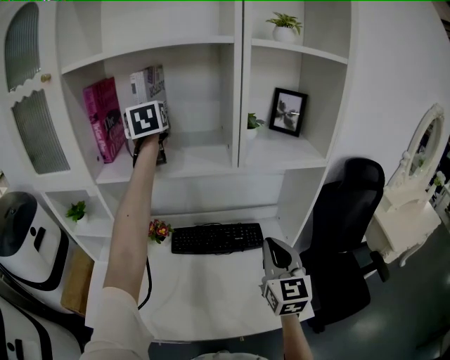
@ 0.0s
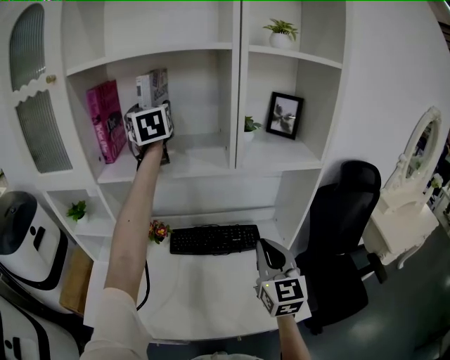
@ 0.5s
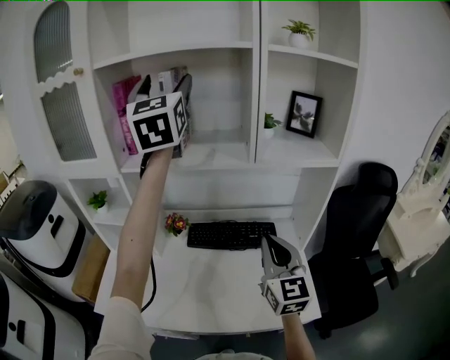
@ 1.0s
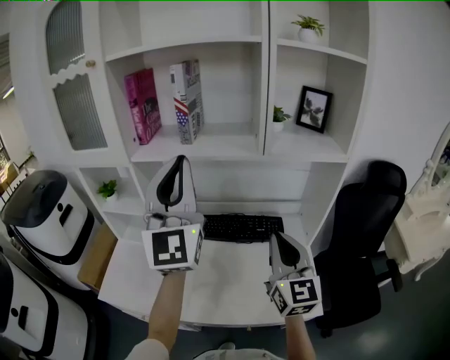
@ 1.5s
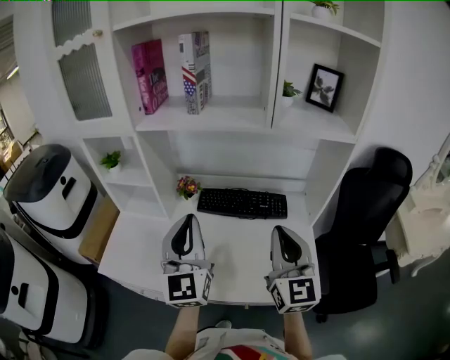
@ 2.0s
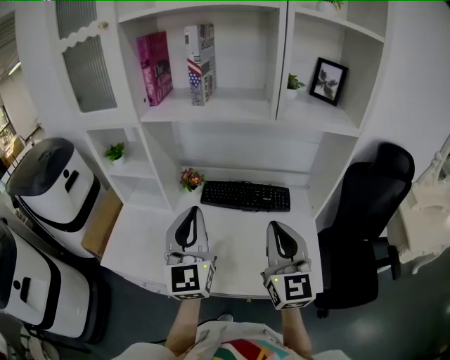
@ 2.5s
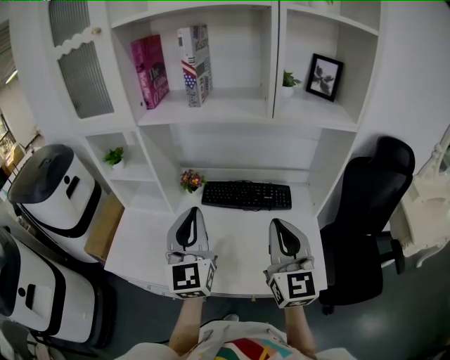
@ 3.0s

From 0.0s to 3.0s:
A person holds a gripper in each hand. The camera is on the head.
From 0.0s to 1.5s: The right gripper ends up approximately 5 cm from where it was, while the left gripper travels backward by about 35 cm, tips its fingers upward by approximately 30 degrees, and closes.
From 1.5s to 3.0s: The left gripper moves downward, roughly 20 cm, and rotates about 20 degrees, while the right gripper ends up roughly 5 cm from where it was.

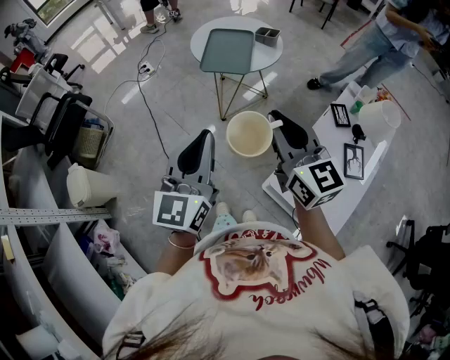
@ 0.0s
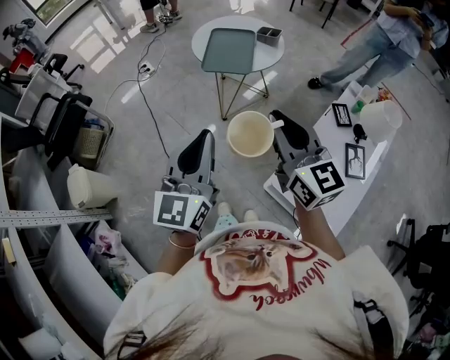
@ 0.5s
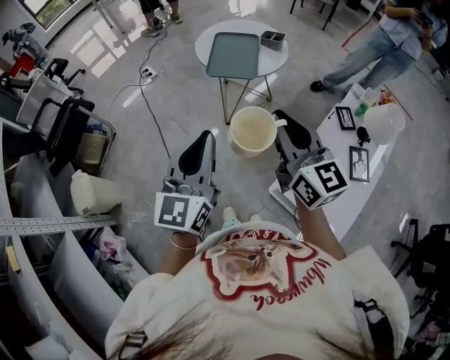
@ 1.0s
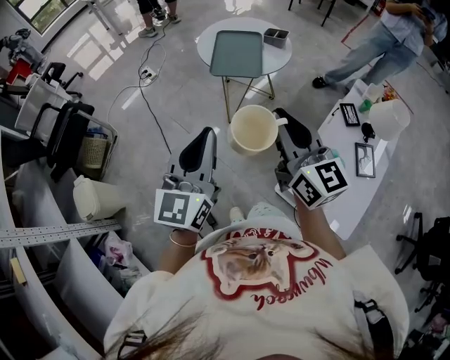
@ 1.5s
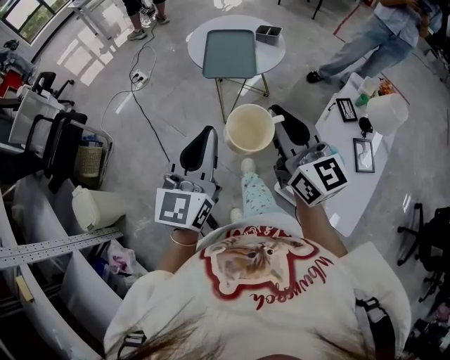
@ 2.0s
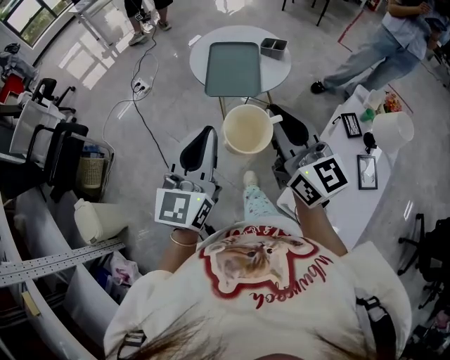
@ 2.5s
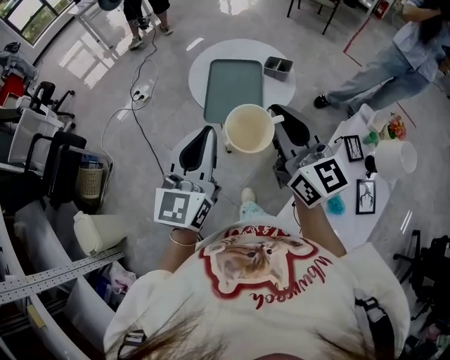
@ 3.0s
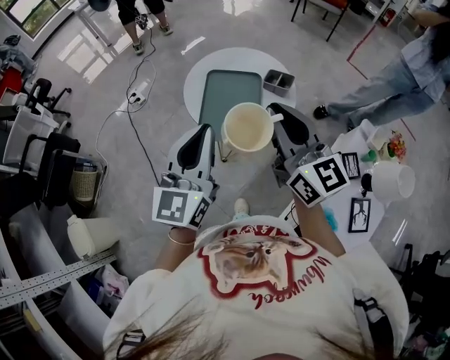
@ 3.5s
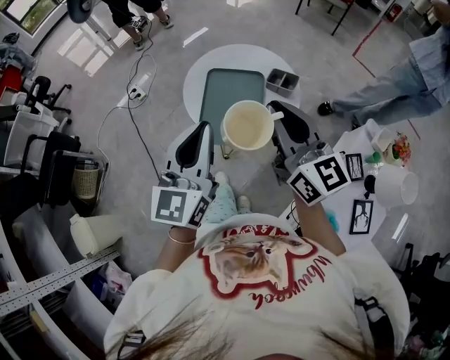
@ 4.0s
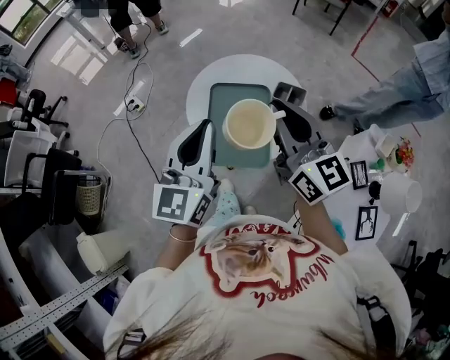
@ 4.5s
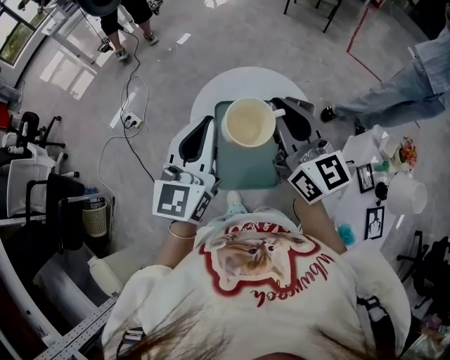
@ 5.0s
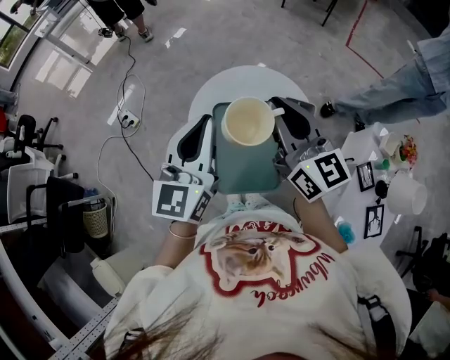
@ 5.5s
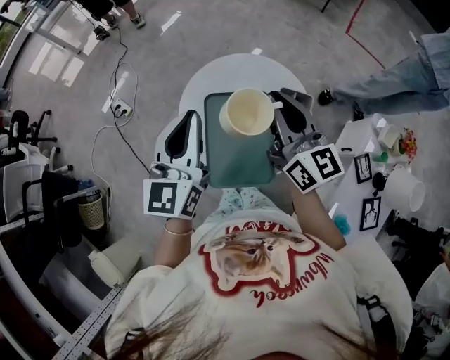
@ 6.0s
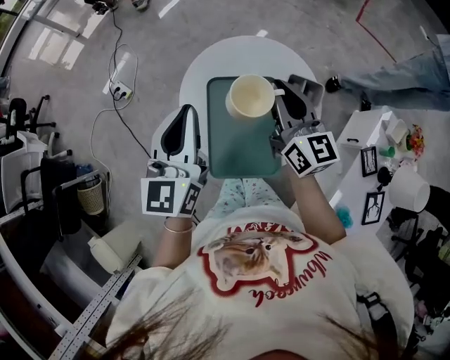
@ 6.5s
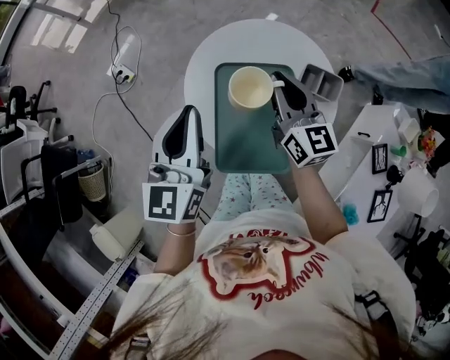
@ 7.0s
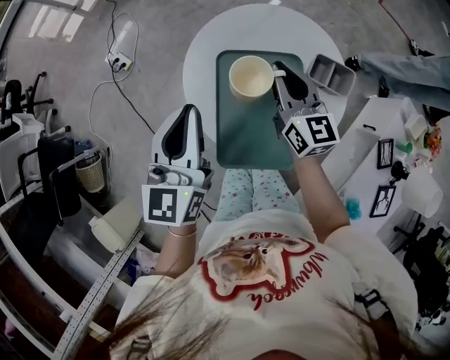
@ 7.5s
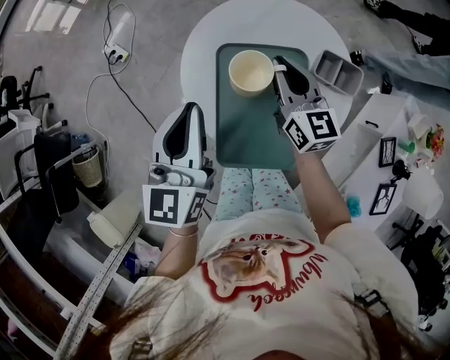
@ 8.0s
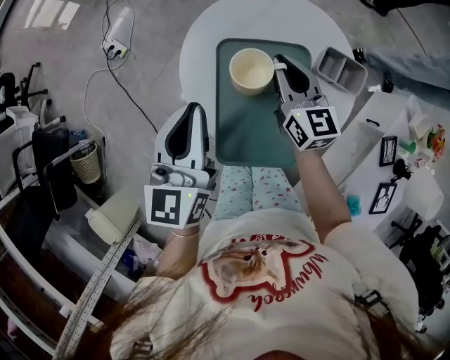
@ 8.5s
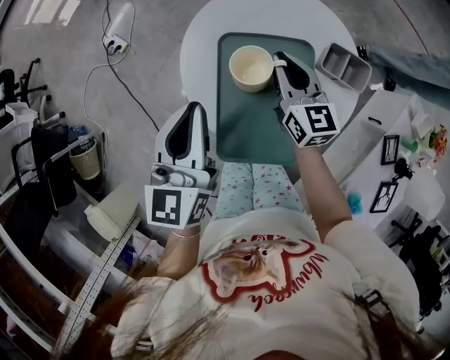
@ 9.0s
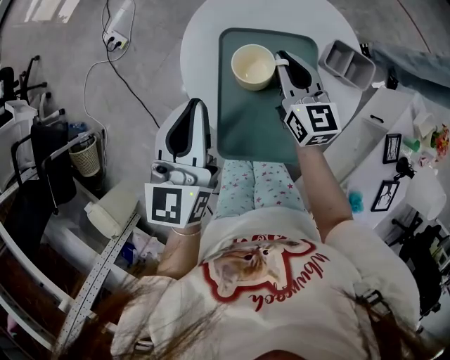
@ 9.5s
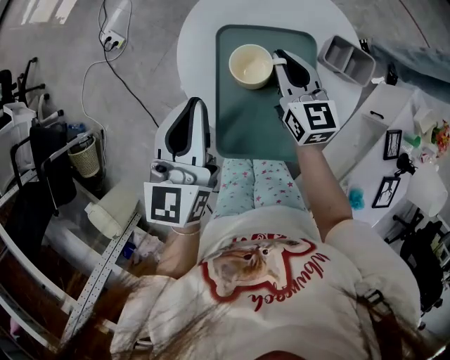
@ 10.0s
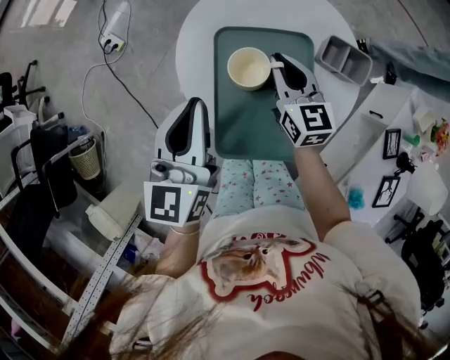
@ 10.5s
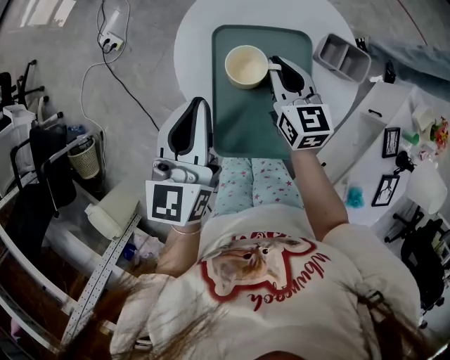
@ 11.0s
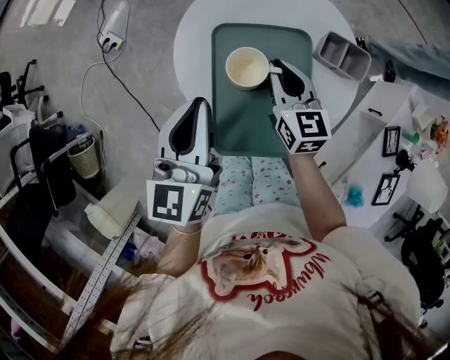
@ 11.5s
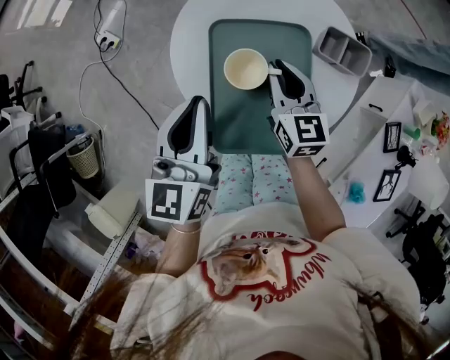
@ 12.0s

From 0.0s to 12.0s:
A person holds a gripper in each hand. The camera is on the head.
From 0.0s to 2.0s: The right gripper travels forward and to the left by approximately 10 cm. The left gripper travels forward by some 10 cm.
From 2.0s to 4.0s: The two grippers go roughly 30 cm forward.
From 4.0s to 6.0s: Both grippers move forward, approximately 20 cm.
From 6.0s to 8.0s: The left gripper heads downward, covering approximately 10 cm, while the right gripper travels downward by about 20 cm.
From 8.0s to 10.0s: The right gripper goes some 5 cm downward.
From 10.0s to 12.0s: The grippers make only small movements.

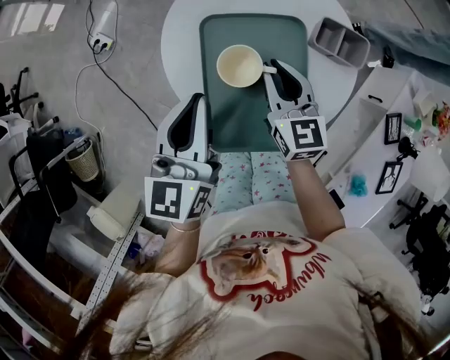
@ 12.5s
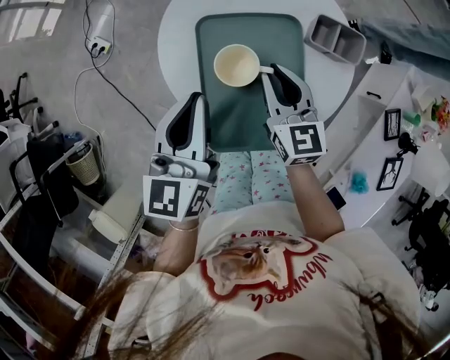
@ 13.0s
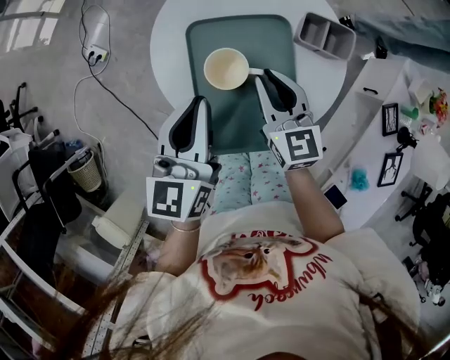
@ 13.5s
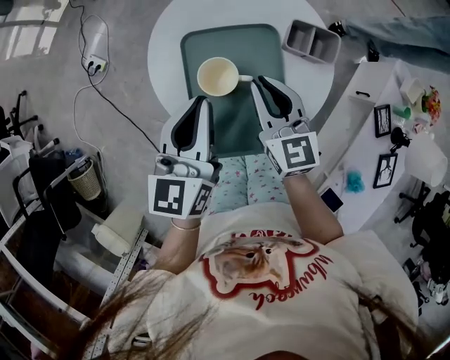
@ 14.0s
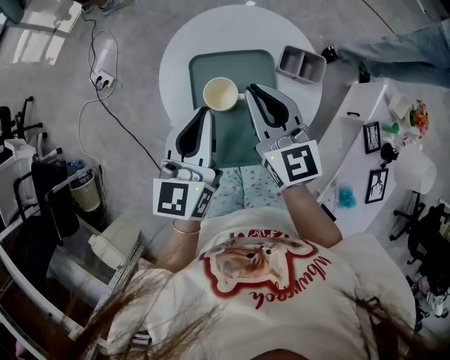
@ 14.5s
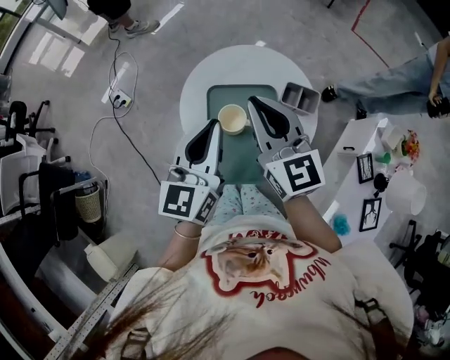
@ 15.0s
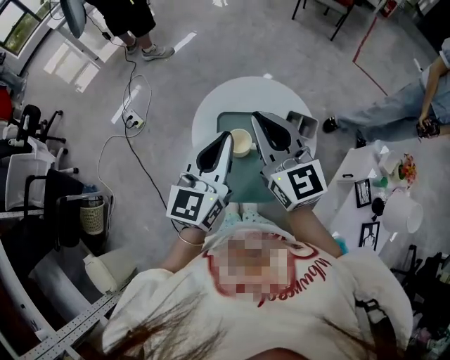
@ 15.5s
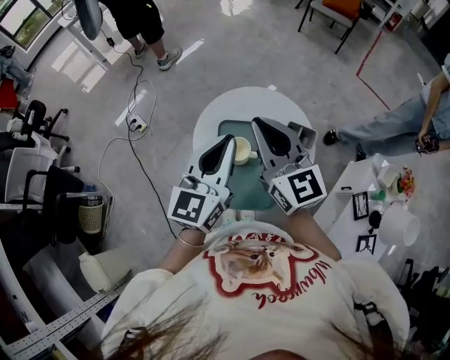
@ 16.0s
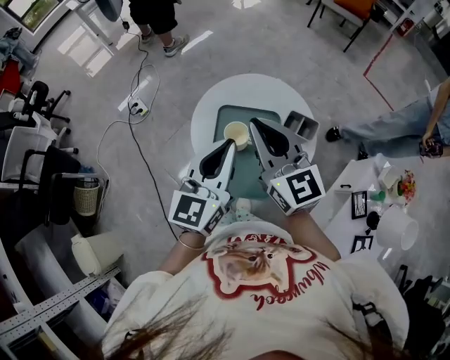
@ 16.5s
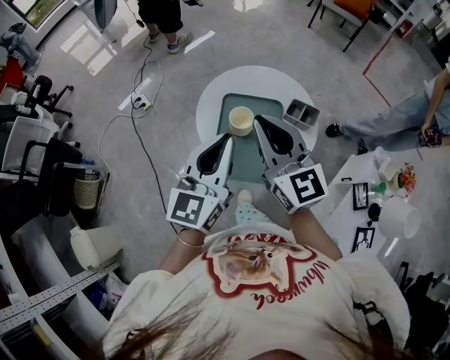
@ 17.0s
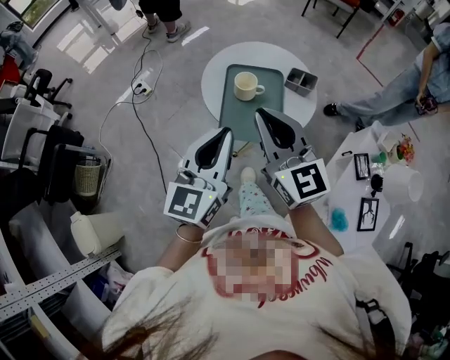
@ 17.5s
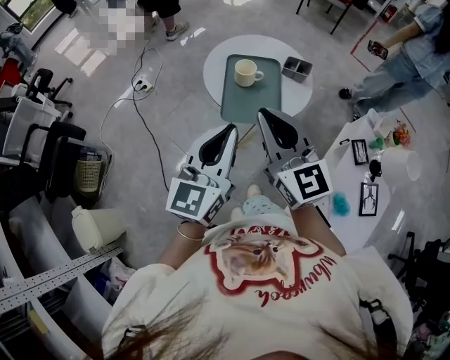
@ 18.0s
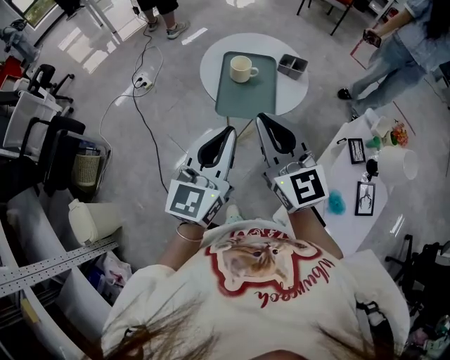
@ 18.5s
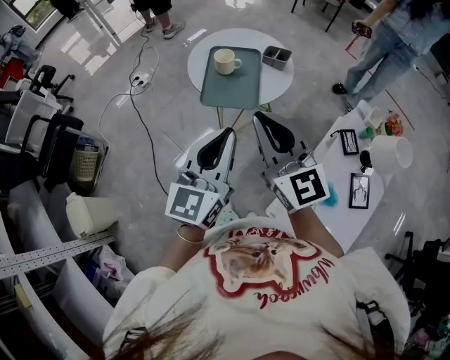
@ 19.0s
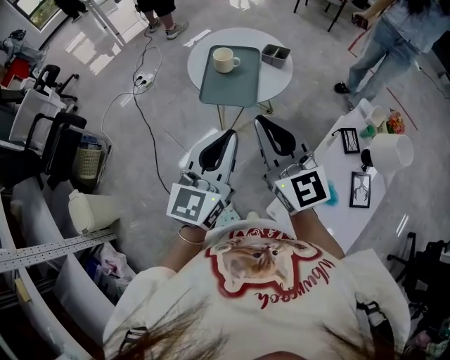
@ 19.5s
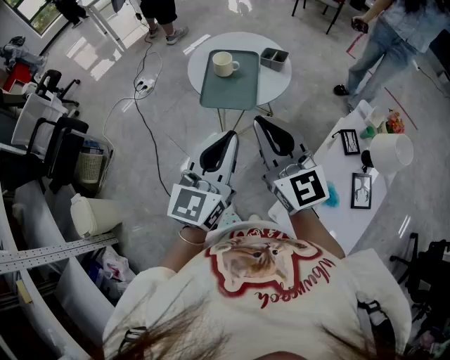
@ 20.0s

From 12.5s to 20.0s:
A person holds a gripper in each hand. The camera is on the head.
From 12.5s to 14.5s: The left gripper ends up some 5 cm from where it was; the right gripper heads upward, covering some 15 cm.
From 14.5s to 16.5s: The two grippers go approximately 10 cm upward.
From 16.5s to 18.0s: Both grippers move backward, approximately 25 cm.
From 18.0s to 20.0s: The left gripper shifts approximately 15 cm to the right and backward; the right gripper goes about 15 cm backward and to the right.

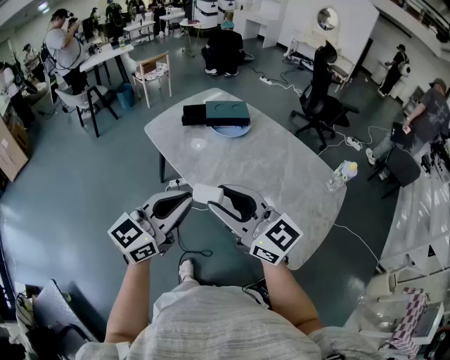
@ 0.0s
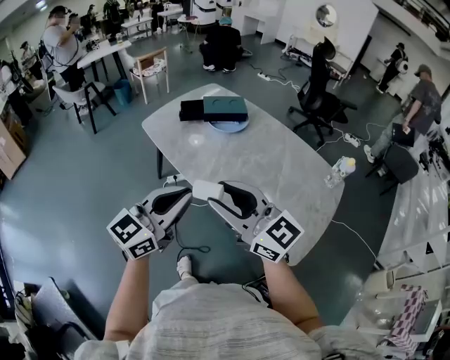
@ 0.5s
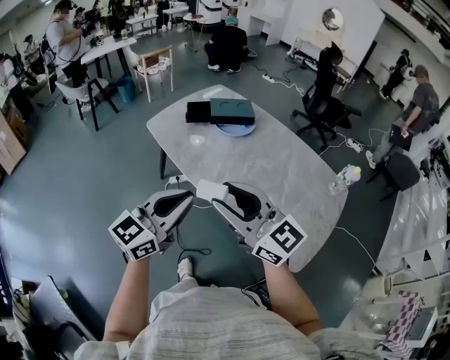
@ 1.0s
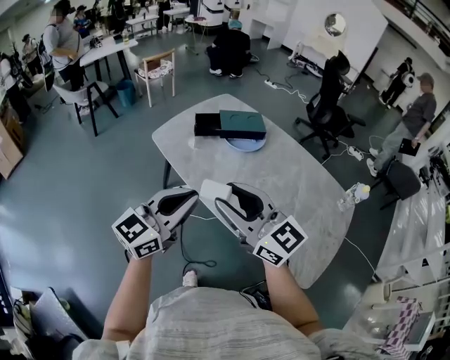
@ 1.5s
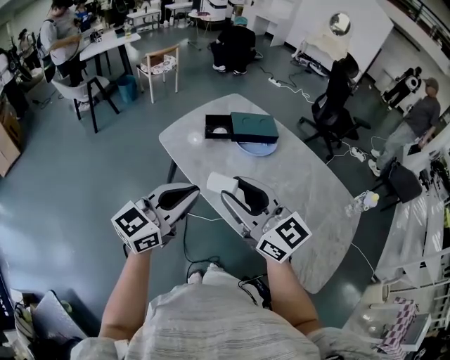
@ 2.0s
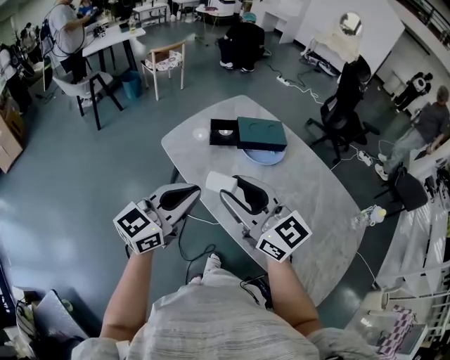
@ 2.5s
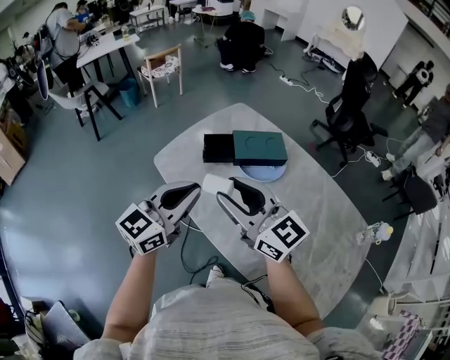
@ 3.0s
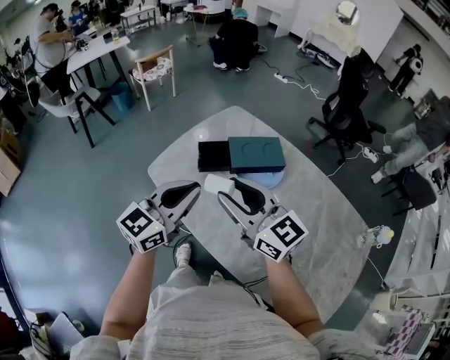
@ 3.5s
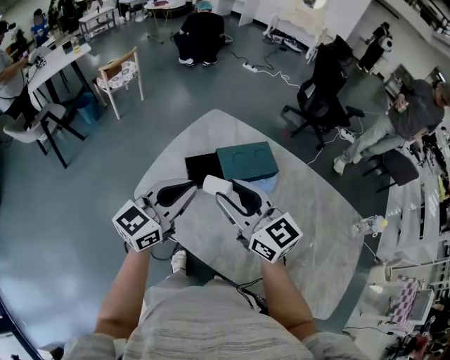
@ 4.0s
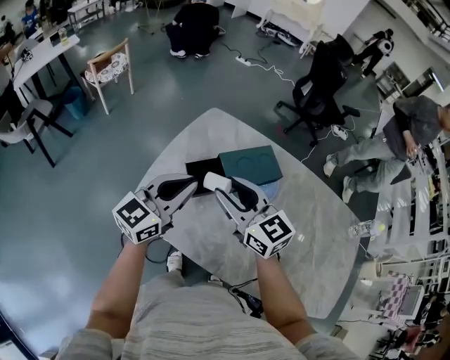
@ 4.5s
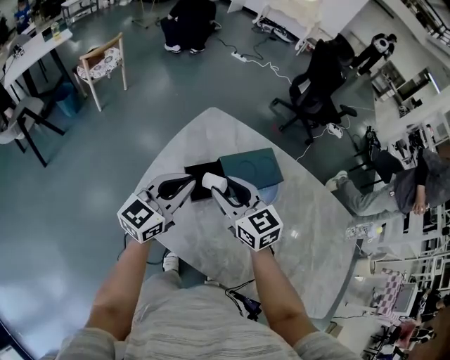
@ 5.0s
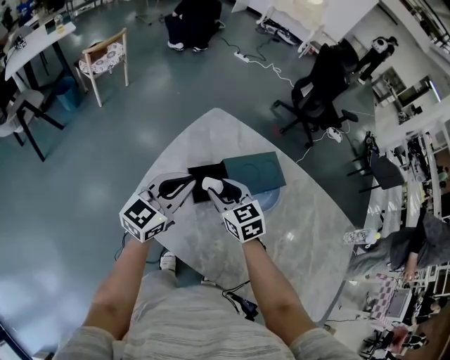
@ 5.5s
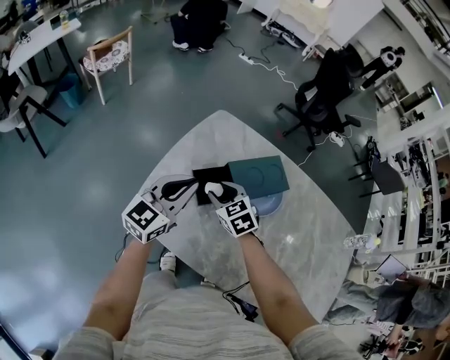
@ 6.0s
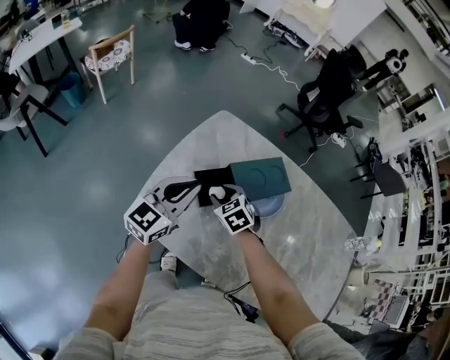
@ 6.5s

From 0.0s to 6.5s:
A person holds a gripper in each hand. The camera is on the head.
From 0.0s to 2.0s: The two grippers go about 20 cm forward and to the left.
From 2.0s to 4.5s: Both grippers are carried forward, roughly 40 cm. The right gripper rotates about 20 degrees.
From 4.5s to 6.5s: The left gripper goes some 10 cm downward and forward. Meanwhile the right gripper moves downward, some 25 cm, and tilts its fingers approximately 40 degrees downward.
